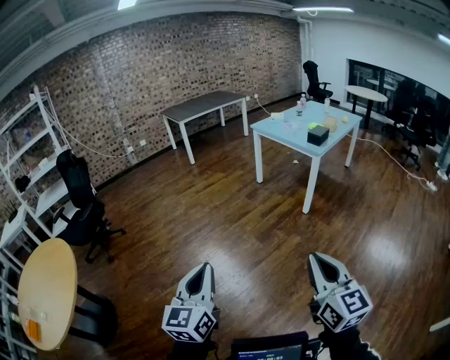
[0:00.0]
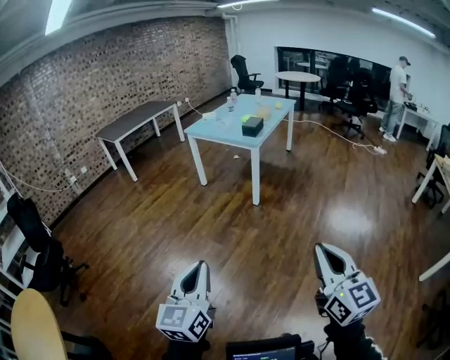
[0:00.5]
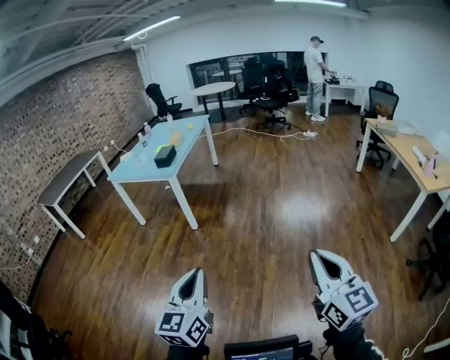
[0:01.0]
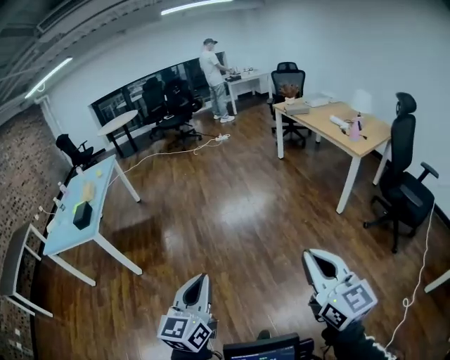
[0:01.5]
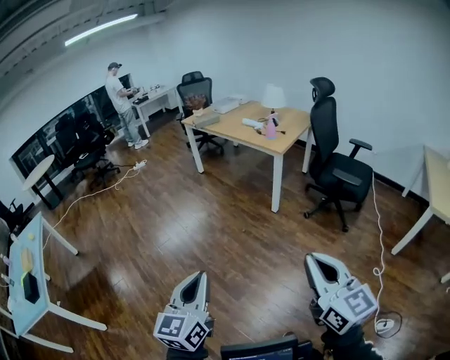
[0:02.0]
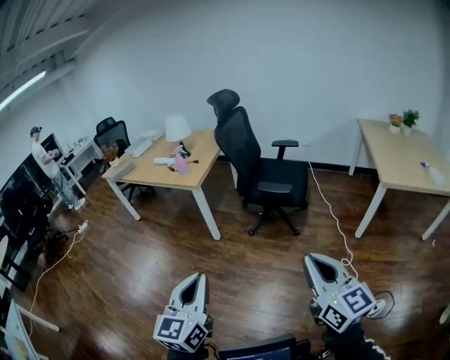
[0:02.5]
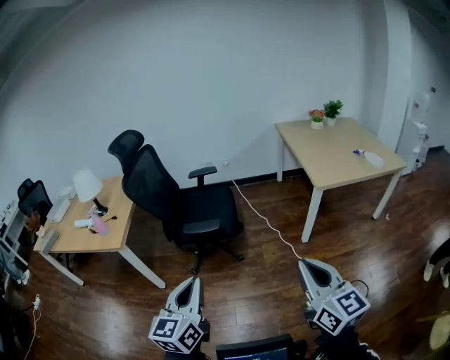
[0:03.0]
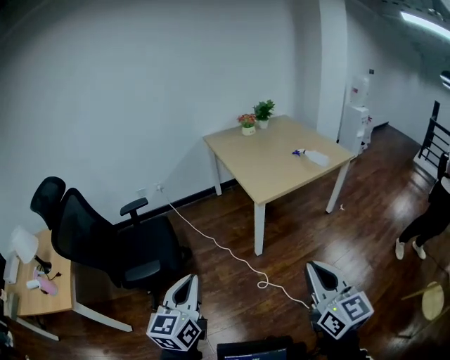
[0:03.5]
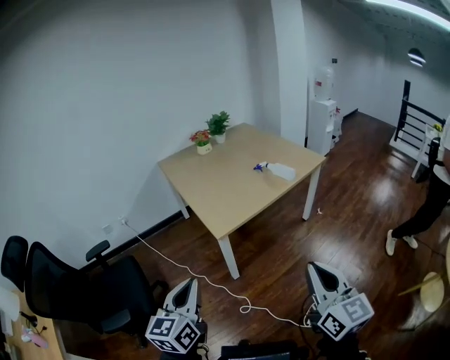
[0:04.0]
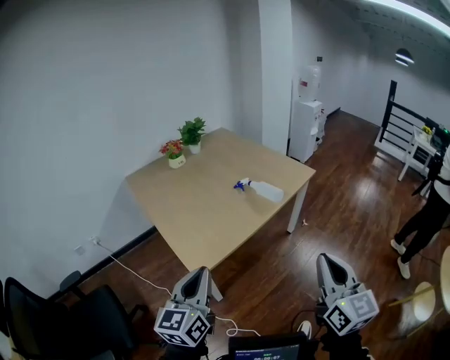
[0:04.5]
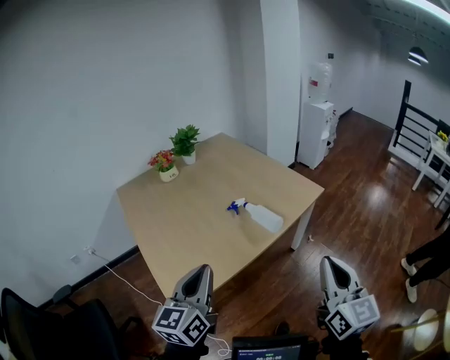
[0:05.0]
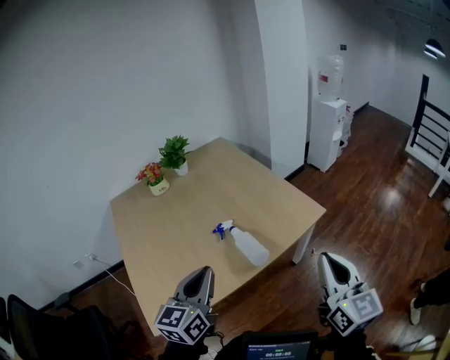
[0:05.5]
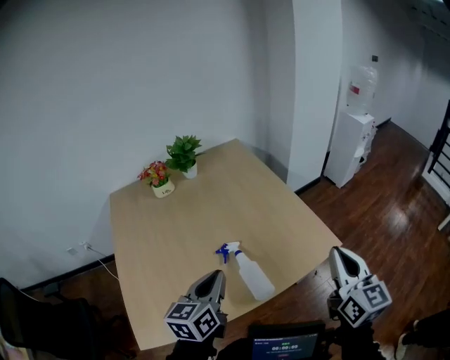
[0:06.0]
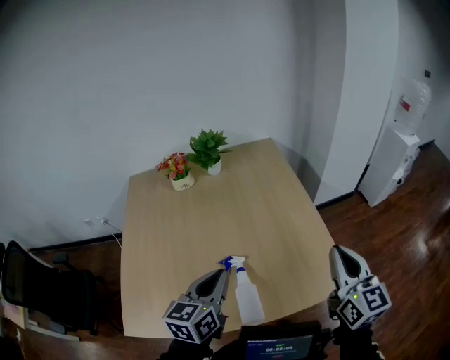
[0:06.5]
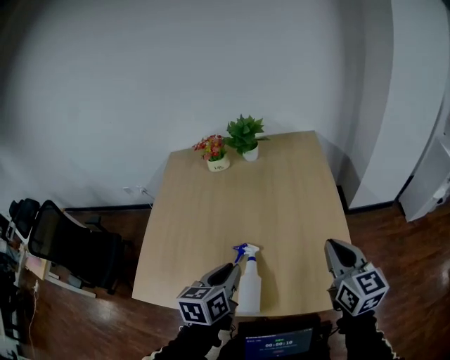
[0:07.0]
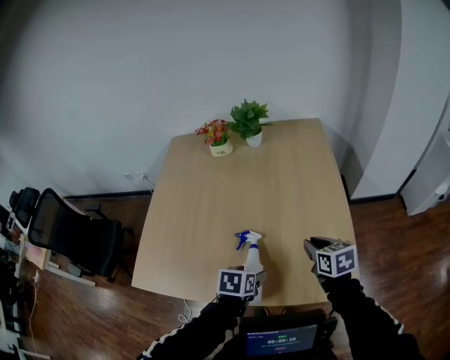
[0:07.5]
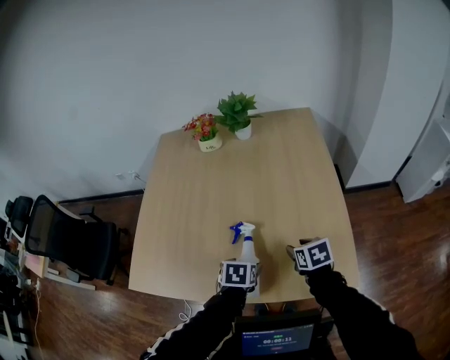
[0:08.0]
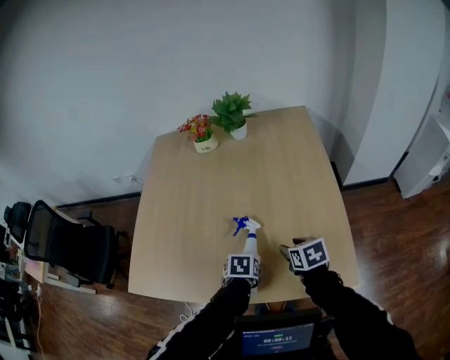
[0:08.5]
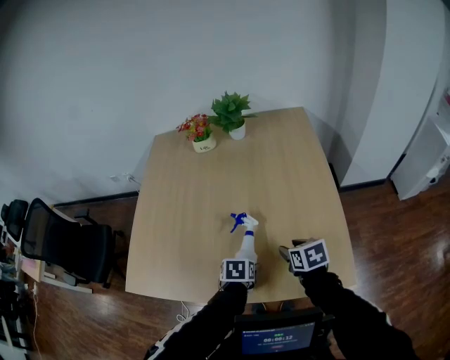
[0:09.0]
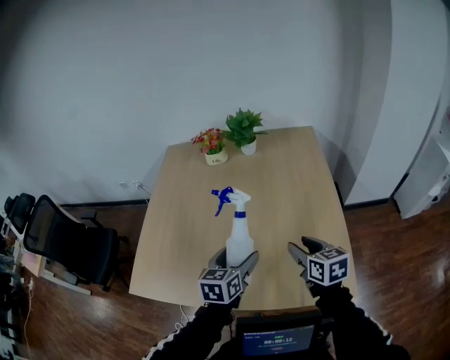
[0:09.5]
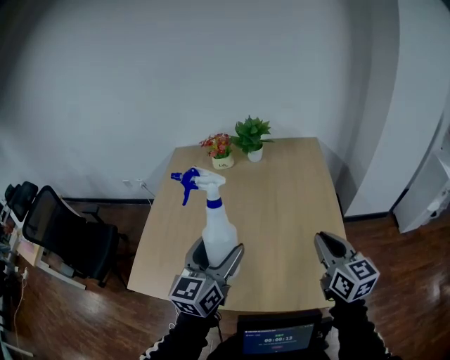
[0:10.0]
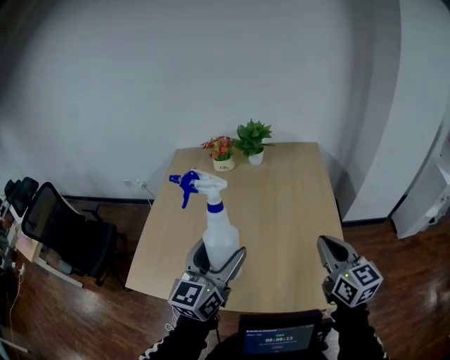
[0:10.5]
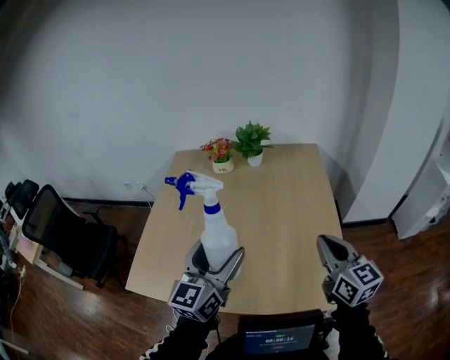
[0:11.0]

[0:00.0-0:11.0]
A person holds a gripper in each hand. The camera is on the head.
0.0 to 2.0 s: The pair of grippers is taken some 1.5 m. The right gripper turns by roughly 90 degrees. The left gripper changes its angle by some 100 degrees.
2.0 to 3.5 s: The two grippers travel together, roughly 1 m. The right gripper changes its angle by some 70 degrees; the left gripper turns by about 70 degrees.
3.5 to 5.5 s: Both grippers are carried forward and to the right, roughly 1.5 m.
5.5 to 7.5 s: The pair of grippers is taken about 50 cm. The right gripper tilts its fingers approximately 40 degrees downward. The left gripper tilts its fingers roughly 50 degrees downward, and opens its fingers.
7.5 to 9.0 s: The two grippers go about 10 cm downward. The right gripper opens its fingers.
9.0 to 11.0 s: The grippers both shift upward by about 35 cm. The left gripper angles its fingers upward, by about 70 degrees. Meanwhile the right gripper angles its fingers upward, by about 40 degrees, and closes its fingers.

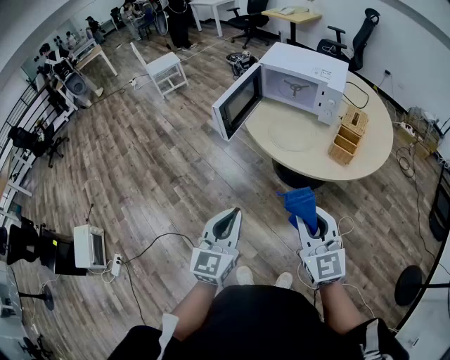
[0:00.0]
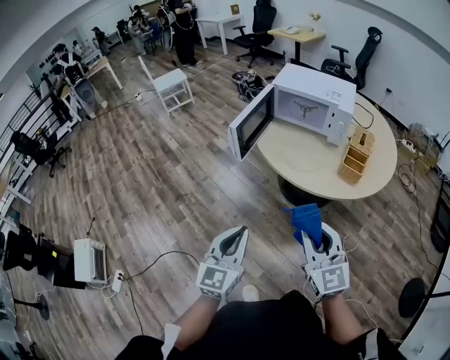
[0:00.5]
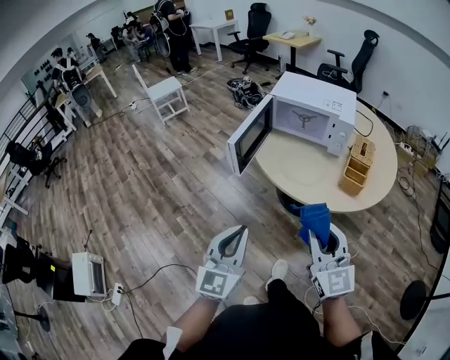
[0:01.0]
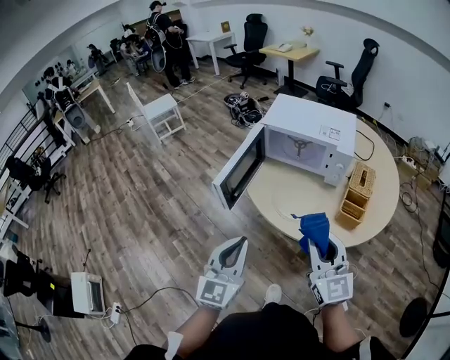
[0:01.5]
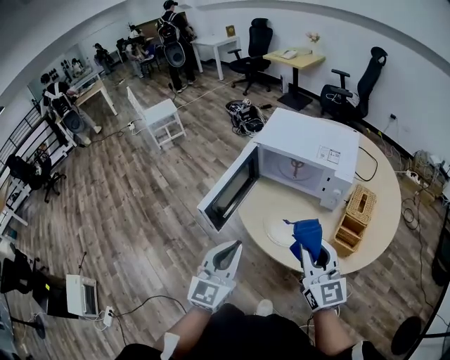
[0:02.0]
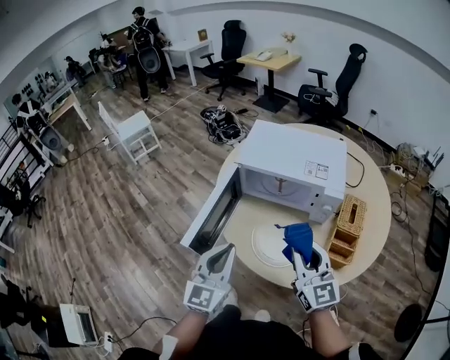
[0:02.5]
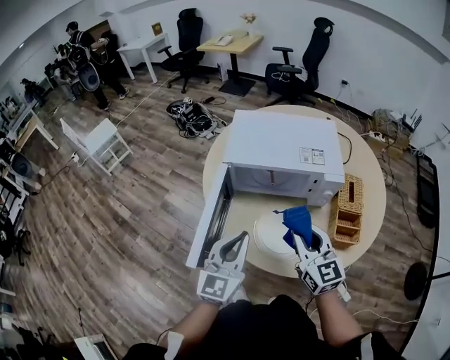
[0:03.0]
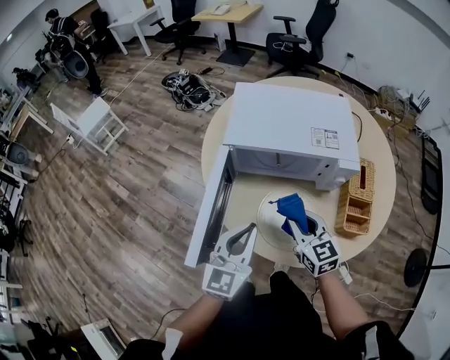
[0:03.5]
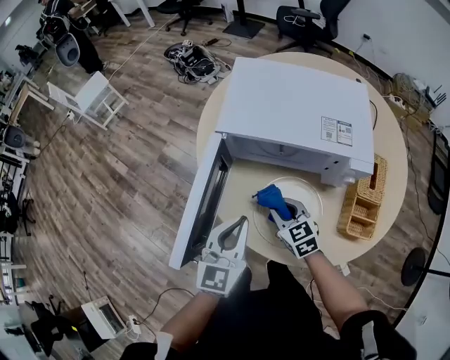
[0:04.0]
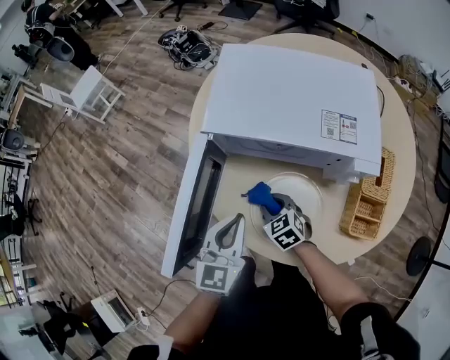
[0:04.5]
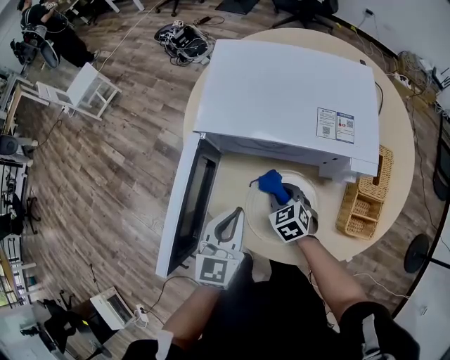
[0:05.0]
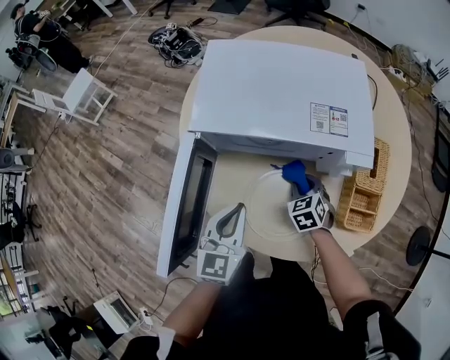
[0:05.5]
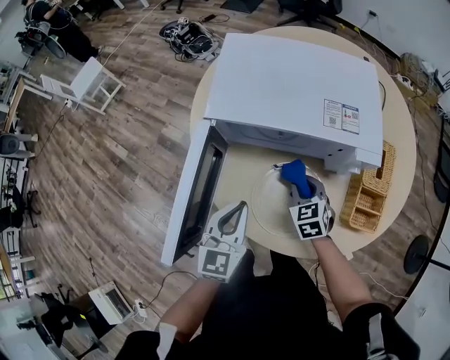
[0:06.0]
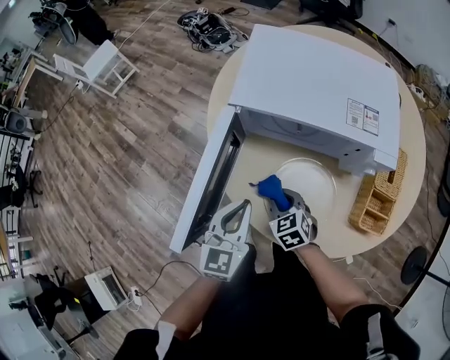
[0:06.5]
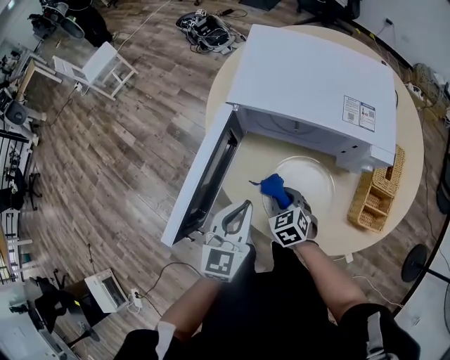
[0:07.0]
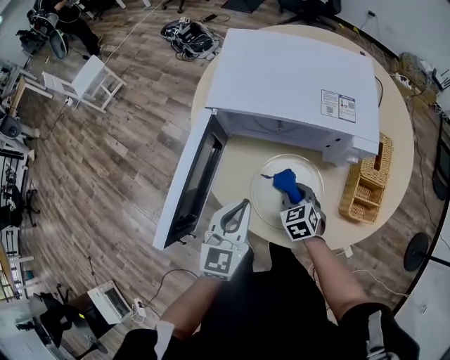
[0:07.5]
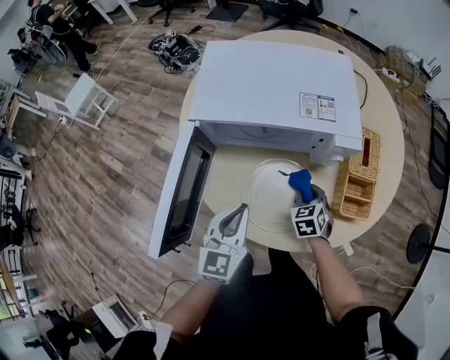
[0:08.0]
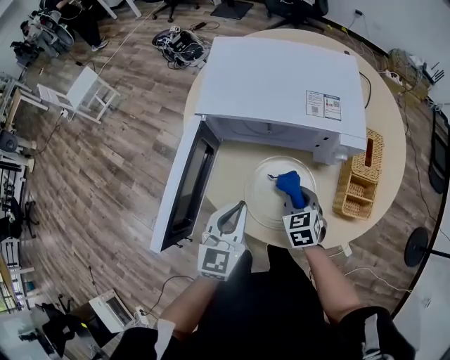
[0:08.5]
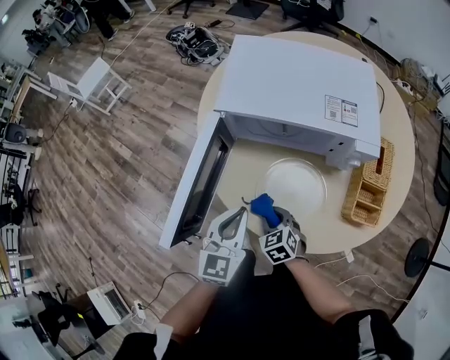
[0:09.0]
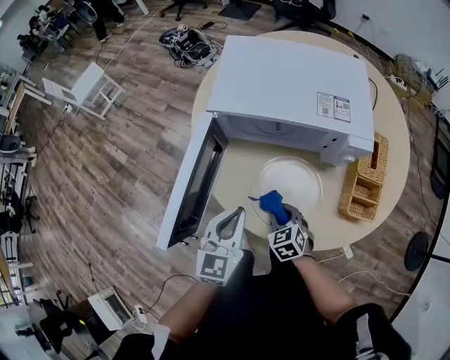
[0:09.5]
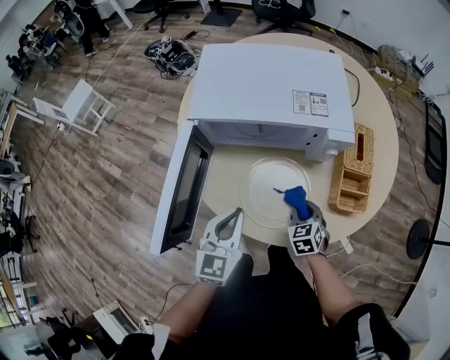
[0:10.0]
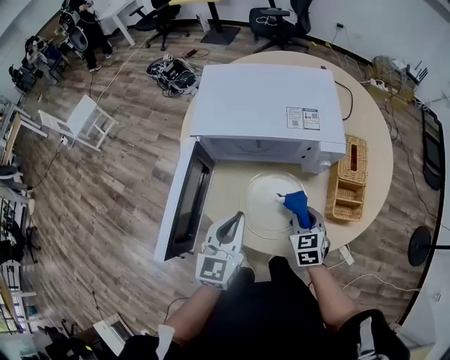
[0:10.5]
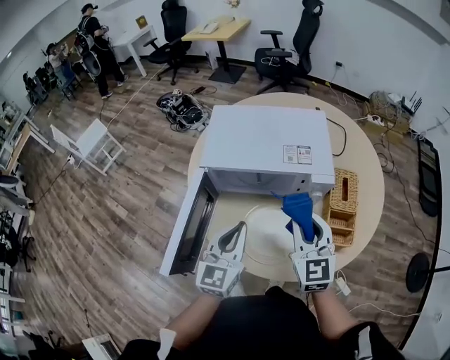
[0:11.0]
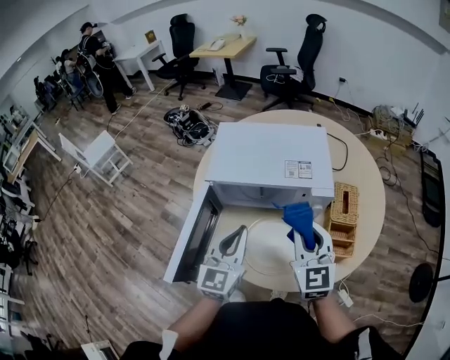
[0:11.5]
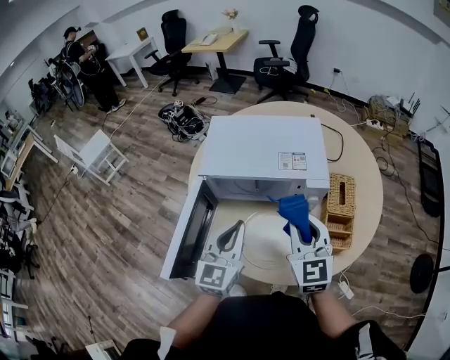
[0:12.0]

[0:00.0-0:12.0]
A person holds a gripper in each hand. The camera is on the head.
0.0 to 2.0 s: Both grippers move forward, approximately 30 cm.
2.0 to 4.0 s: The right gripper travels downward and forward by some 35 cm, and tilts its fingers about 40 degrees downward. Meanwhile the left gripper moves forward and downward, about 25 cm.
4.0 to 6.0 s: The right gripper is displaced to the right by about 10 cm, and swivels some 20 degrees; the left gripper shifts approximately 5 cm downward.
6.0 to 8.0 s: The right gripper heads to the right, covering roughly 5 cm.
8.0 to 10.0 s: The right gripper heads backward, covering approximately 5 cm, and reaches about 15 cm to the left, then returns.
10.0 to 12.0 s: The right gripper heads upward, covering about 30 cm, and points its fingers roughly 40 degrees further upward, while the left gripper goes approximately 15 cm upward and forward.

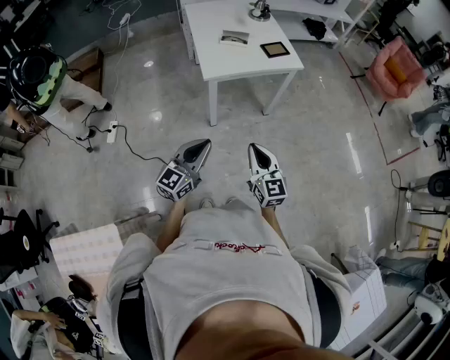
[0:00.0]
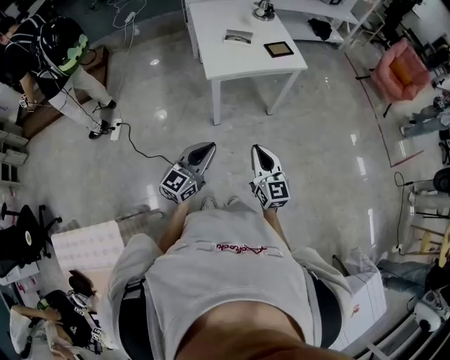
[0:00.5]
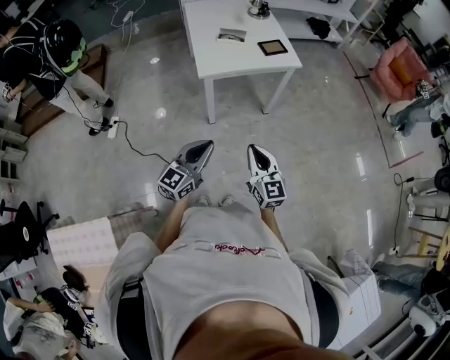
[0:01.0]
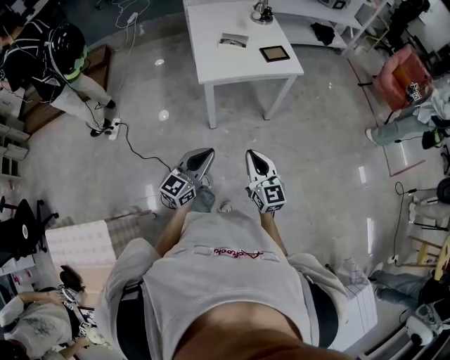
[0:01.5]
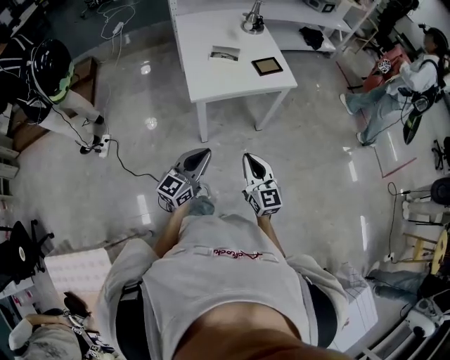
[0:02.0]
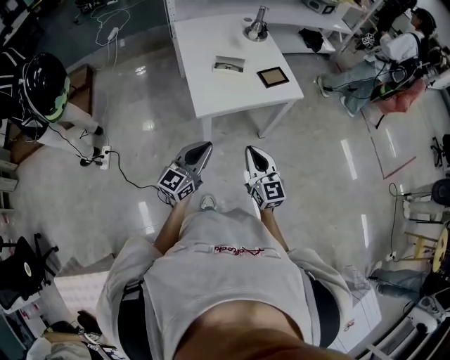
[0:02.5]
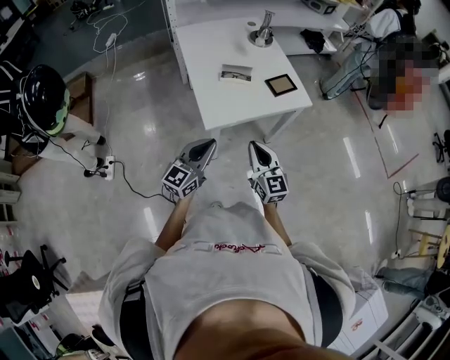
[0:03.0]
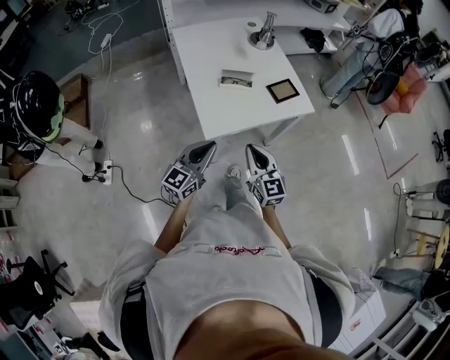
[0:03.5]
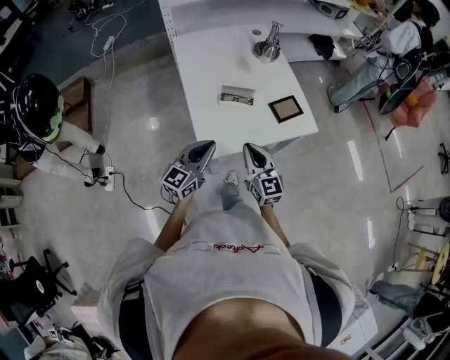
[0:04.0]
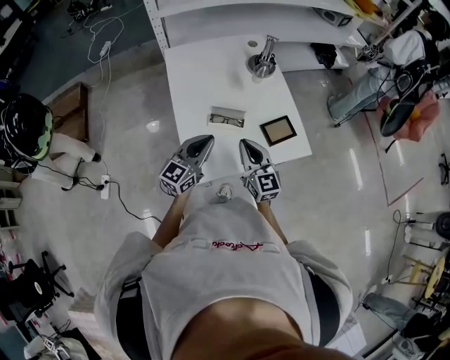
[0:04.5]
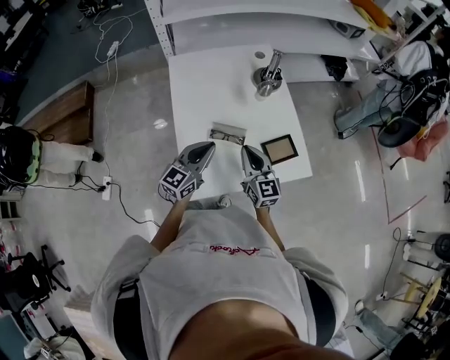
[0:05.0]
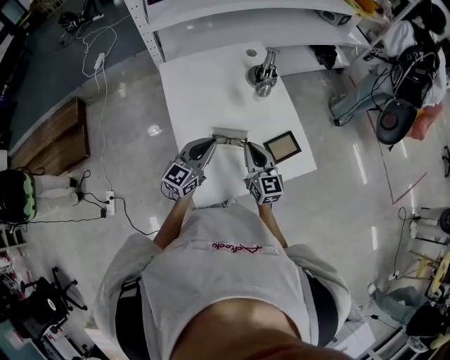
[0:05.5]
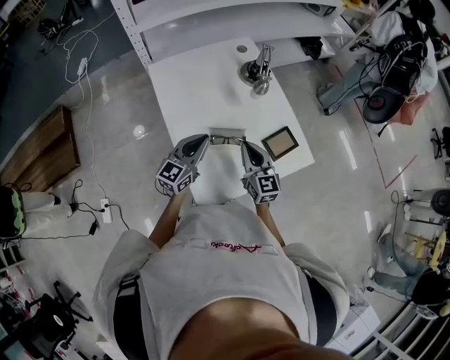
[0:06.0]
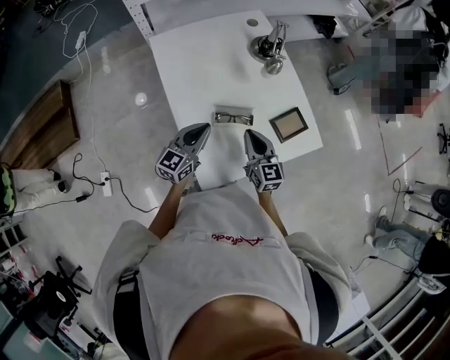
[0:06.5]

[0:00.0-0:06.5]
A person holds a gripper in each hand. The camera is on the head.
0.0 to 2.0 s: Both grippers travel together forward, approximately 10 cm.
2.0 to 4.5 s: Both grippers are carried forward, some 40 cm.
4.5 to 6.5 s: The right gripper shifts about 10 cm forward and downward; the left gripper travels forward, to the left and downward by about 10 cm.
